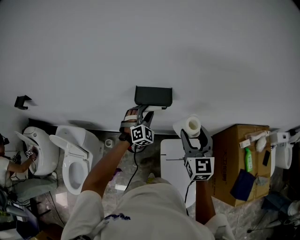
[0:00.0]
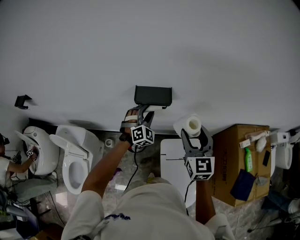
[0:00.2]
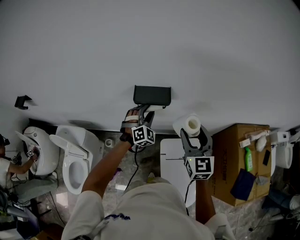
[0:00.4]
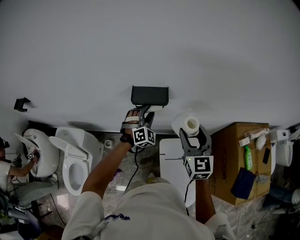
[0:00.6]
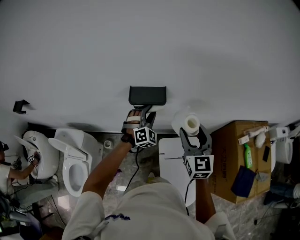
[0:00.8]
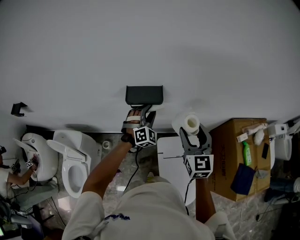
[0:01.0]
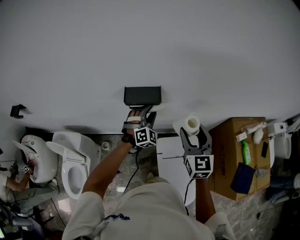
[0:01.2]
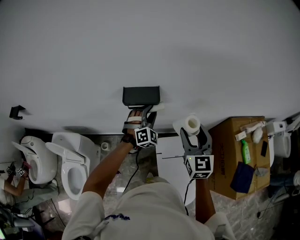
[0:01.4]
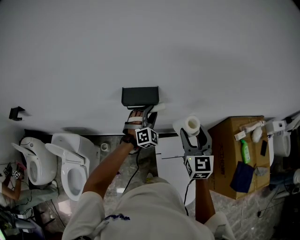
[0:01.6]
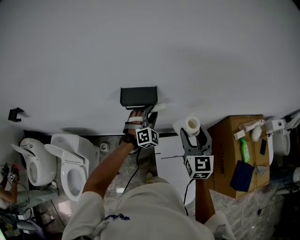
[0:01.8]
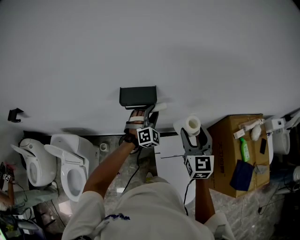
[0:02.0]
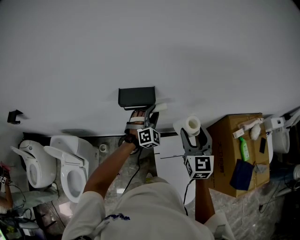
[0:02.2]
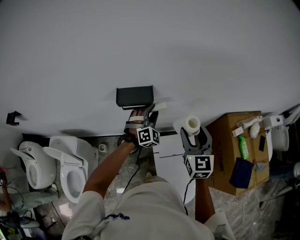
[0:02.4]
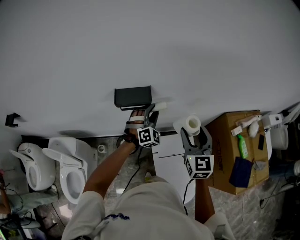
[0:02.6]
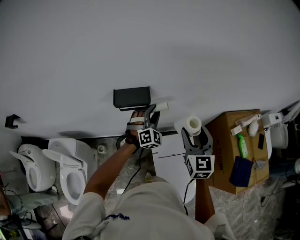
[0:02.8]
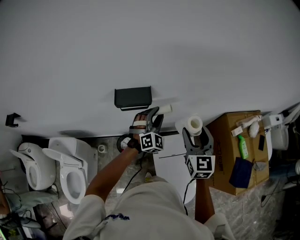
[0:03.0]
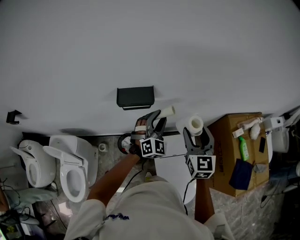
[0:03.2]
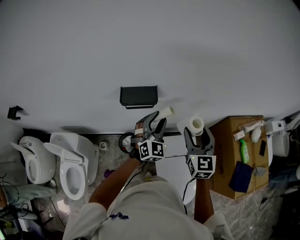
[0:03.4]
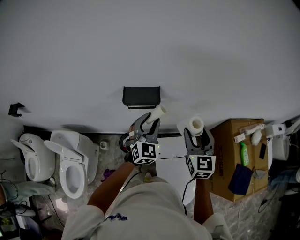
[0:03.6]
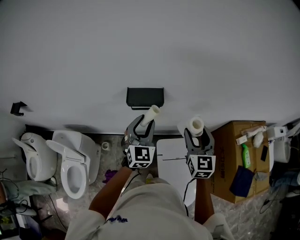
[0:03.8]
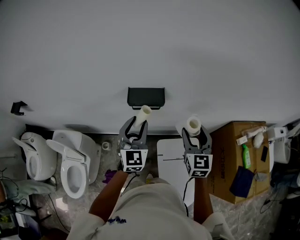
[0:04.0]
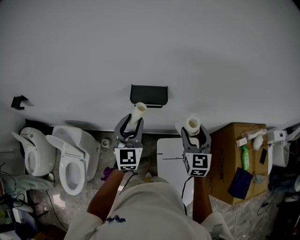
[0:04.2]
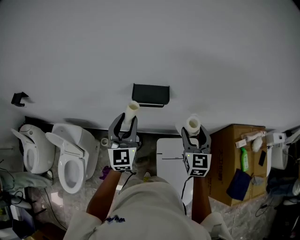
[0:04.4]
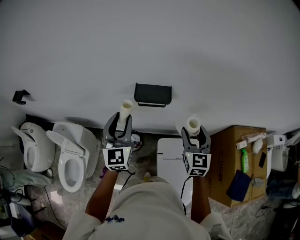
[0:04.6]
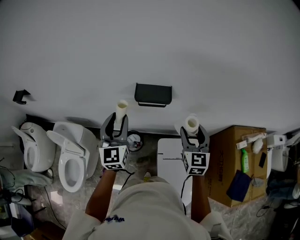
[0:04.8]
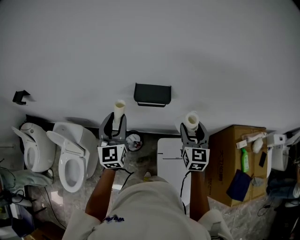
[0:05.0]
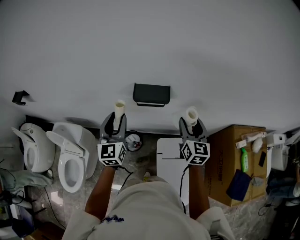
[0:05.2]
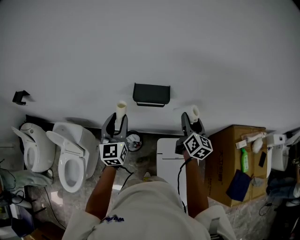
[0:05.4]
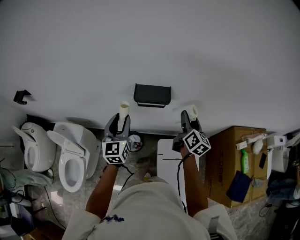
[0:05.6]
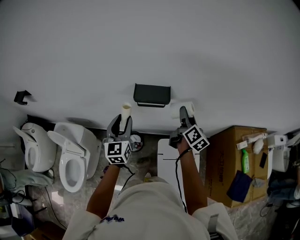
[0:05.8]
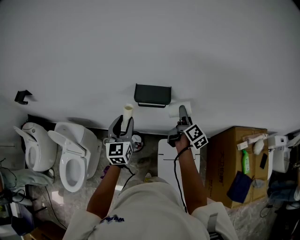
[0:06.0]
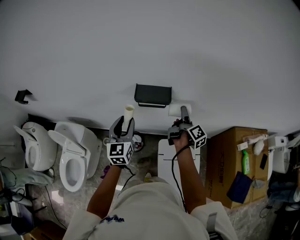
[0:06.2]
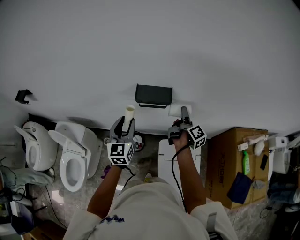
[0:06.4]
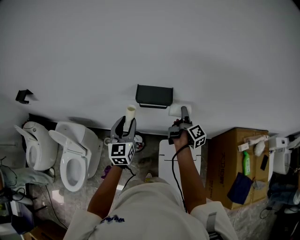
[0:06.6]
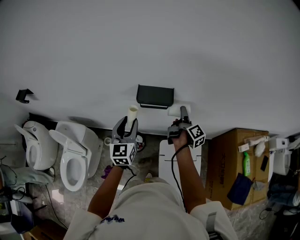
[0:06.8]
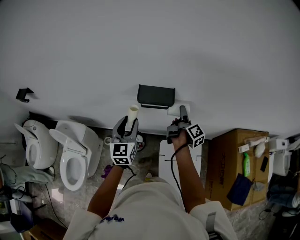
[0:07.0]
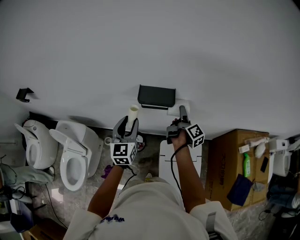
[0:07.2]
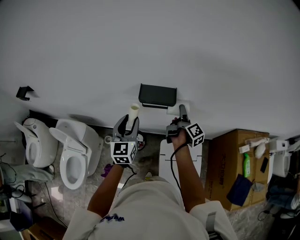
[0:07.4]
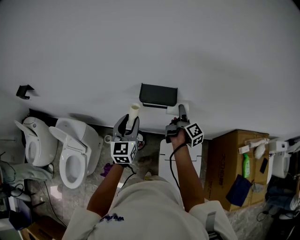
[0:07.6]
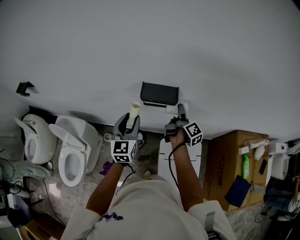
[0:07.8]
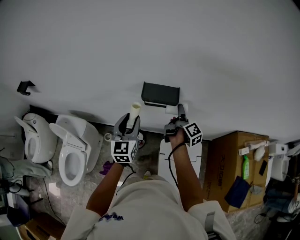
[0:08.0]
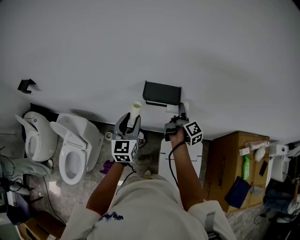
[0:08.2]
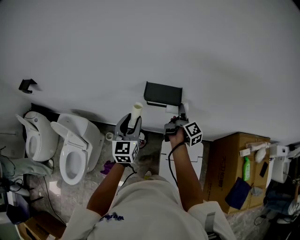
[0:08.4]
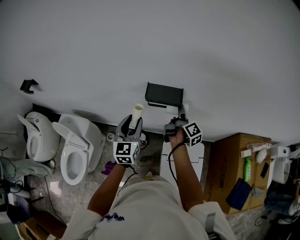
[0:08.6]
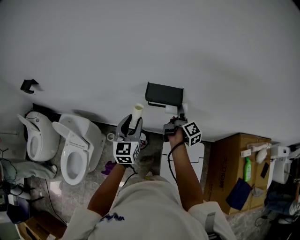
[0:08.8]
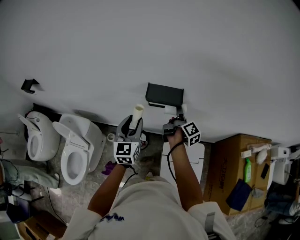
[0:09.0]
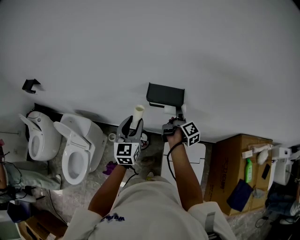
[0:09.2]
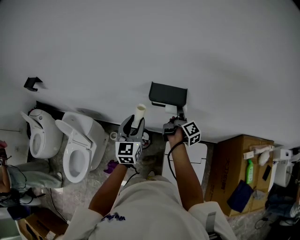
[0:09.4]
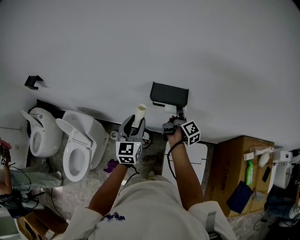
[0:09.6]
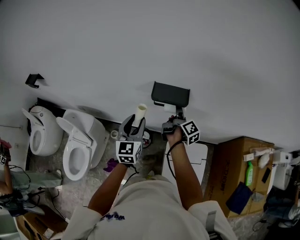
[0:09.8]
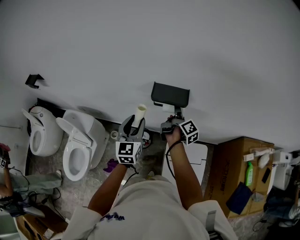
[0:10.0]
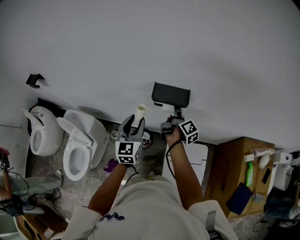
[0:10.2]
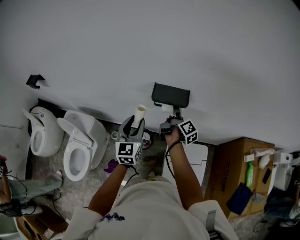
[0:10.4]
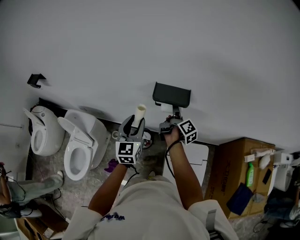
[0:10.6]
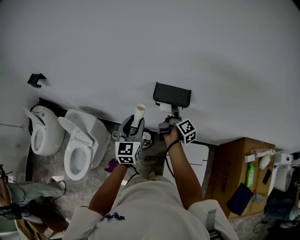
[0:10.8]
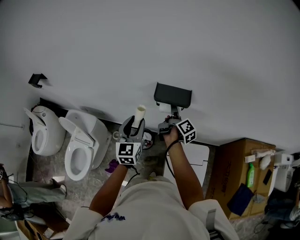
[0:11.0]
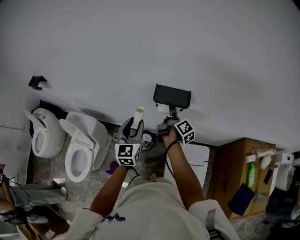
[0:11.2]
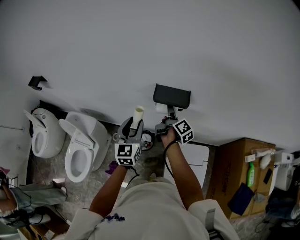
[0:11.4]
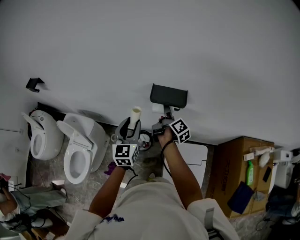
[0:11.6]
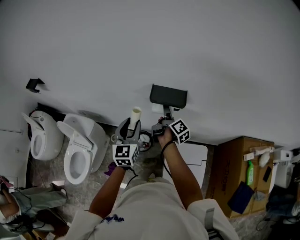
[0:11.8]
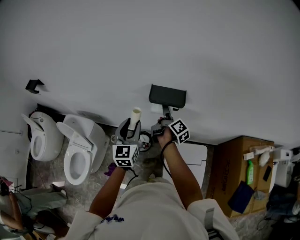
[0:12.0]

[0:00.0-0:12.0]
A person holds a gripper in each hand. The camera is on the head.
0:00.0 to 0:01.6: The left gripper moves to the right, approximately 10 cm.
0:01.6 to 0:03.0: The left gripper shifts roughly 5 cm to the right.
0:03.0 to 0:04.4: The right gripper shifts some 5 cm to the left, while the left gripper shifts some 25 cm to the left, upward and backward, and twists some 40 degrees counterclockwise, seen from behind.
0:04.4 to 0:06.0: The right gripper moves forward and downward, some 15 cm, and twists approximately 70 degrees clockwise, seen from behind; the left gripper goes about 5 cm downward.
0:06.0 to 0:07.6: The right gripper shifts by about 5 cm, and turns by roughly 20 degrees.
0:07.6 to 0:09.0: The grippers move only a little.
0:09.0 to 0:10.4: The grippers move only a little.
0:10.4 to 0:12.0: The grippers stay close to where they were, moving slightly.

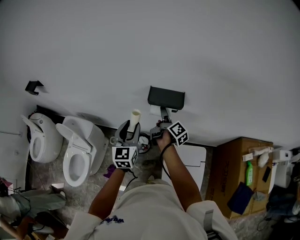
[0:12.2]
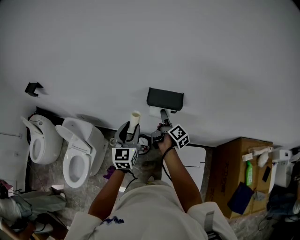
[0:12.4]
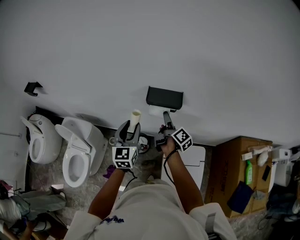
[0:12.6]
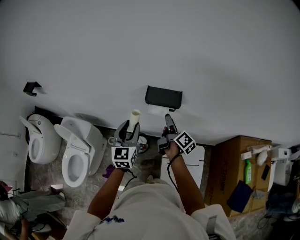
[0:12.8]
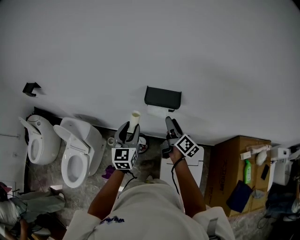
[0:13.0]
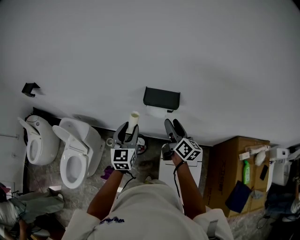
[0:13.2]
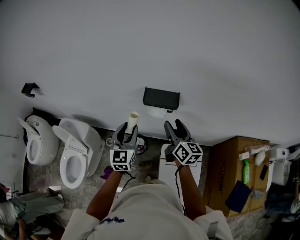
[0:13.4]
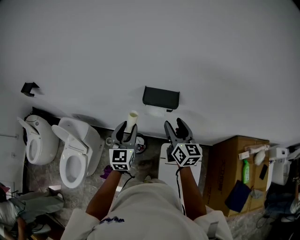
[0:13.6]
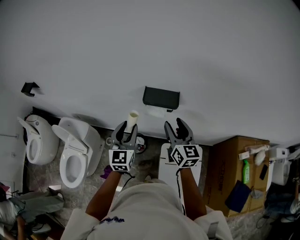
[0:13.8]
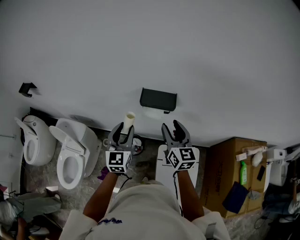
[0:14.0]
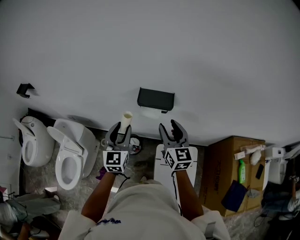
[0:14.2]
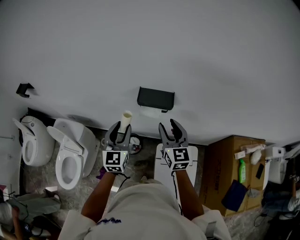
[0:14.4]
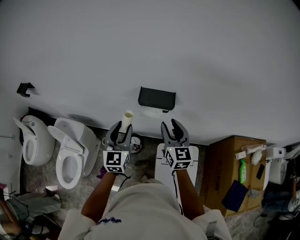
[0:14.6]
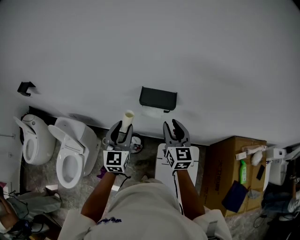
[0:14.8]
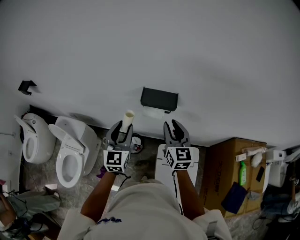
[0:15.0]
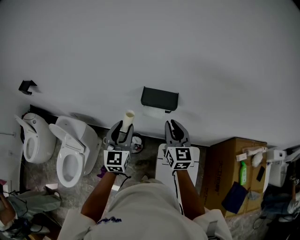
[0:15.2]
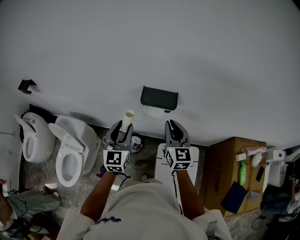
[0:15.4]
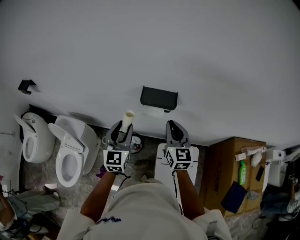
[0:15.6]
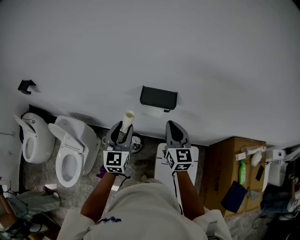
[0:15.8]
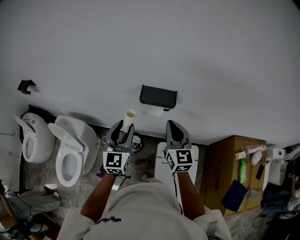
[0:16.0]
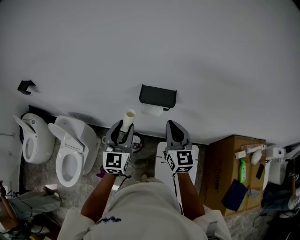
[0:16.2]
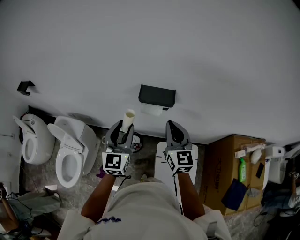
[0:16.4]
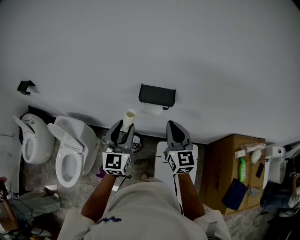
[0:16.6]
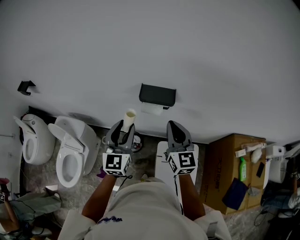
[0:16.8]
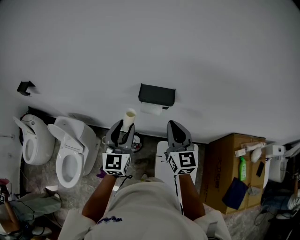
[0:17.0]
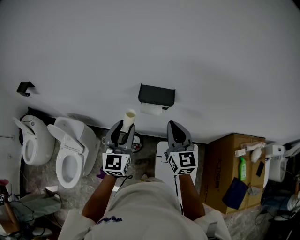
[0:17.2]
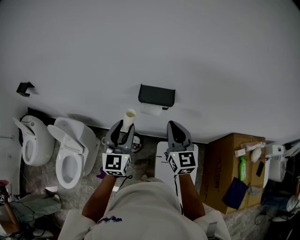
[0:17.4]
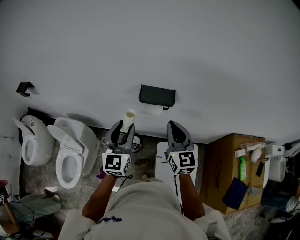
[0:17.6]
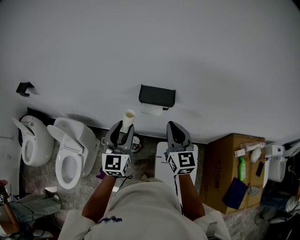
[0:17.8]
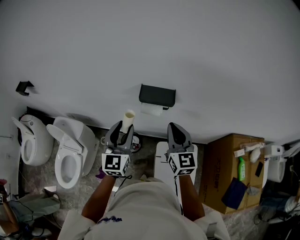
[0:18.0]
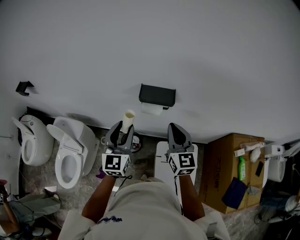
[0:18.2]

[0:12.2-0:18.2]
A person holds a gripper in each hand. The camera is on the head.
0:12.2 to 0:13.8: The right gripper goes approximately 15 cm upward and backward, and rotates around the line of its fingers by about 70 degrees, counterclockwise from behind.
0:13.8 to 0:15.2: The right gripper closes its fingers.
0:15.2 to 0:16.6: The grippers make only small movements.
0:16.6 to 0:18.2: The two grippers keep their place.

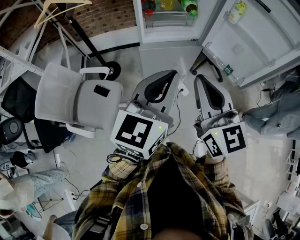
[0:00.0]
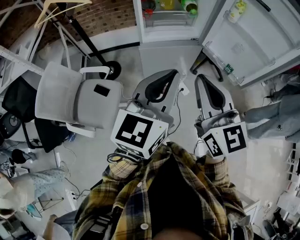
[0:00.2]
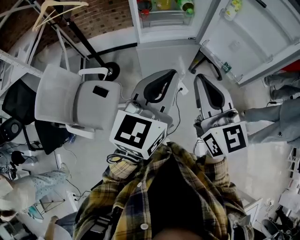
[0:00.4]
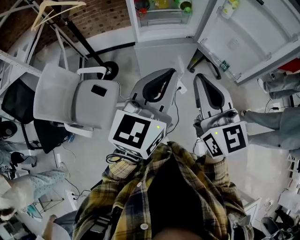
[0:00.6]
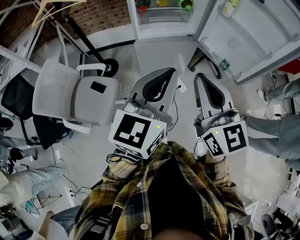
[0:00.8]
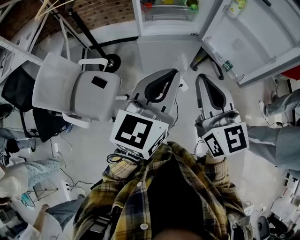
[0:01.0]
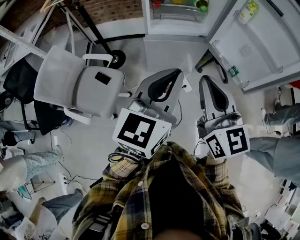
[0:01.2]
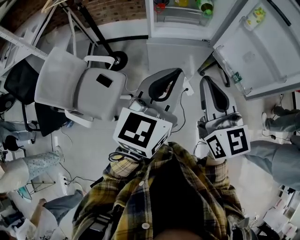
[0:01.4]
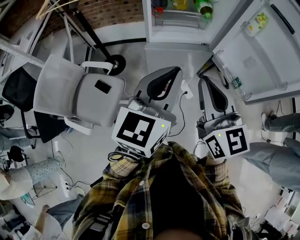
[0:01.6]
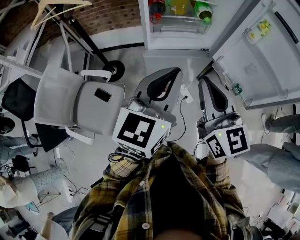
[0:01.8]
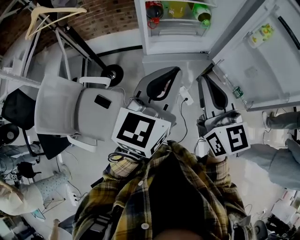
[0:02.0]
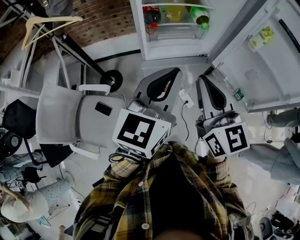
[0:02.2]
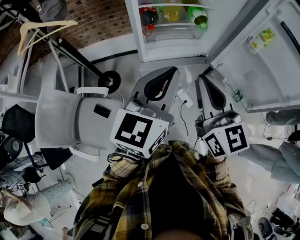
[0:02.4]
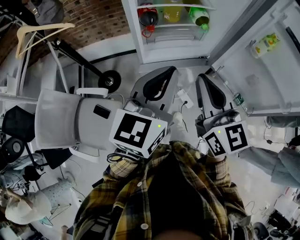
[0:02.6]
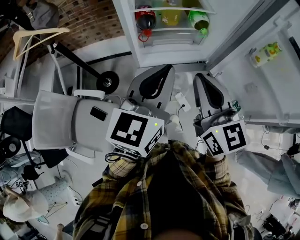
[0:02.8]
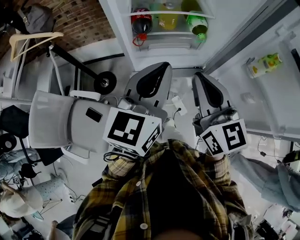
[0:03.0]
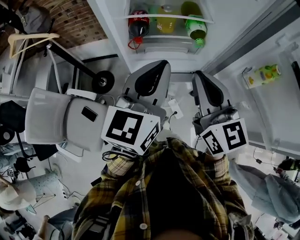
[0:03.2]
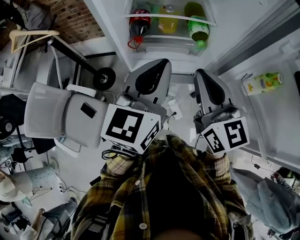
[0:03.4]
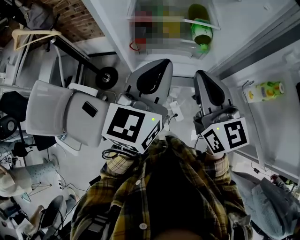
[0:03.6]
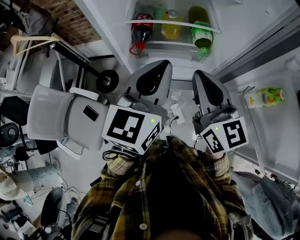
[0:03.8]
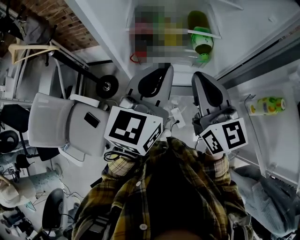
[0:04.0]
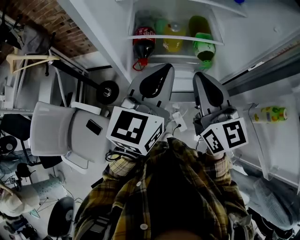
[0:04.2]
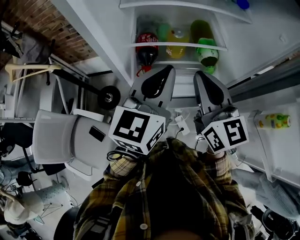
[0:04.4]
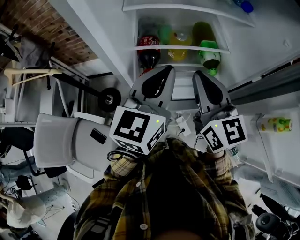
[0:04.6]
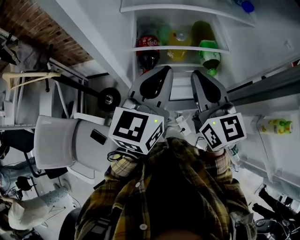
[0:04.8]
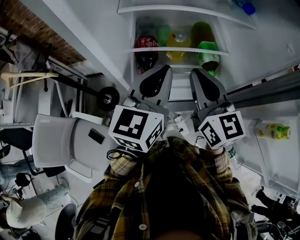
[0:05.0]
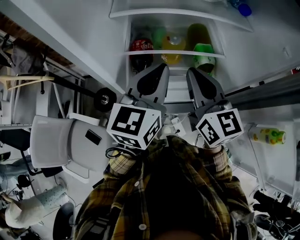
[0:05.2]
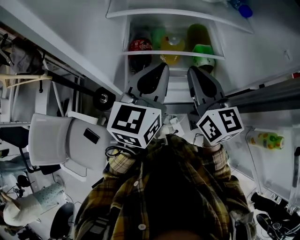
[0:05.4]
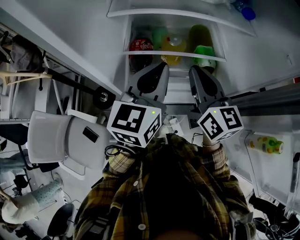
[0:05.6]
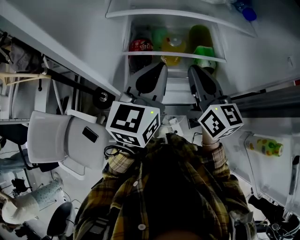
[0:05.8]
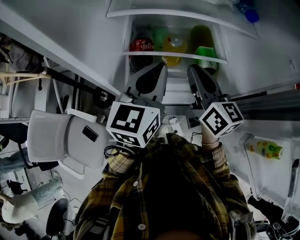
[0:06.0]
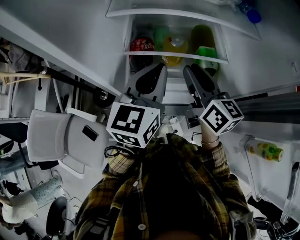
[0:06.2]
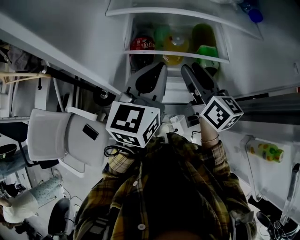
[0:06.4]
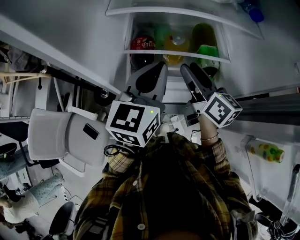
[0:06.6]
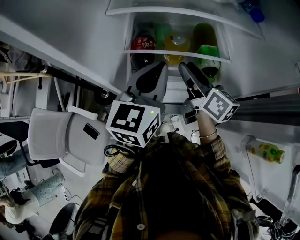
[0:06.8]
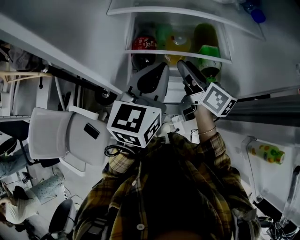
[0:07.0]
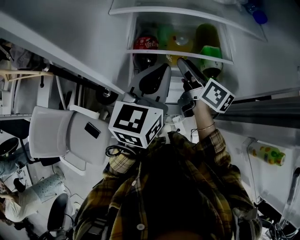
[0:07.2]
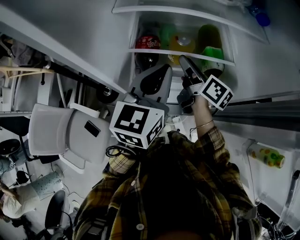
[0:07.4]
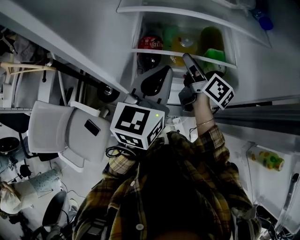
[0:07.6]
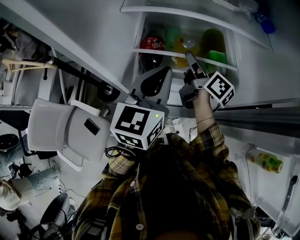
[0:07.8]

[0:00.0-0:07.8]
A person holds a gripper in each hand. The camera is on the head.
0:00.0 to 0:01.6: The grippers both shift forward by about 10 cm.
0:01.6 to 0:03.2: The two grippers go approximately 30 cm forward.
0:03.2 to 0:04.6: The two grippers go roughly 15 cm forward.
0:04.6 to 0:06.2: The right gripper shifts roughly 10 cm forward and downward, rotates approximately 20 degrees, and opens; the left gripper goes some 5 cm forward.
0:06.2 to 0:07.8: The right gripper travels forward and downward by roughly 10 cm, changes its angle by about 30 degrees, and opens its fingers.
